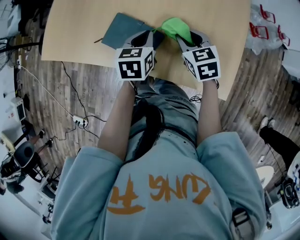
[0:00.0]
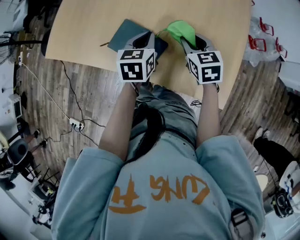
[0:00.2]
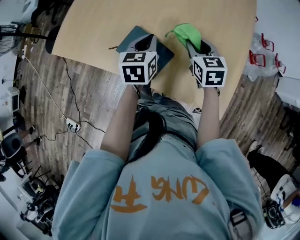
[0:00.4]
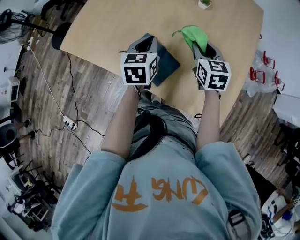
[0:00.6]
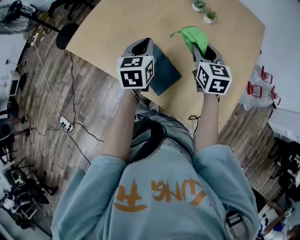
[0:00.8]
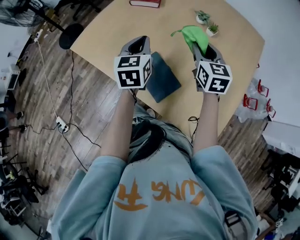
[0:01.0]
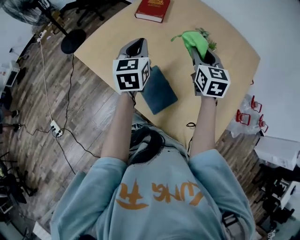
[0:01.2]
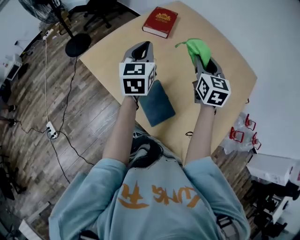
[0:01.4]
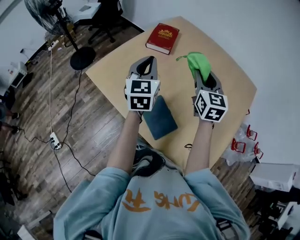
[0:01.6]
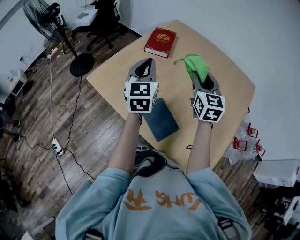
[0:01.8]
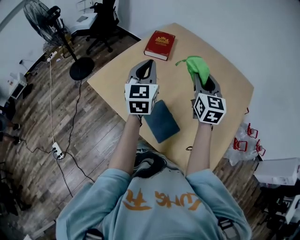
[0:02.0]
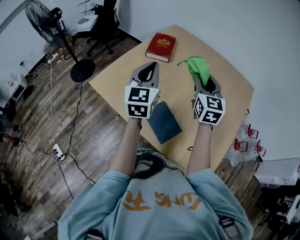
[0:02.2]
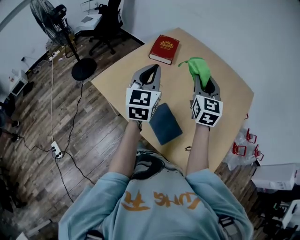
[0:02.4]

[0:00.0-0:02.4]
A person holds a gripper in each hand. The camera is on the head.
0:00.0 to 0:01.2: The left gripper moves upward, to the left and forward, approximately 30 cm, and changes its angle by some 40 degrees. The right gripper travels upward, forward and to the left by about 30 cm, and swivels some 20 degrees.
0:01.2 to 0:02.4: The left gripper shifts roughly 10 cm upward, while the right gripper shifts approximately 10 cm upward and to the left.

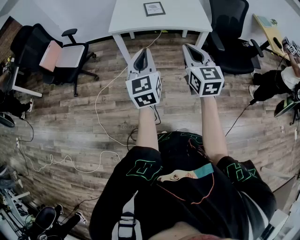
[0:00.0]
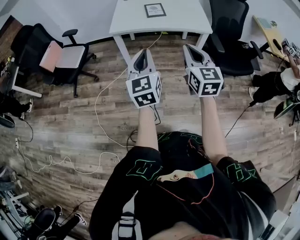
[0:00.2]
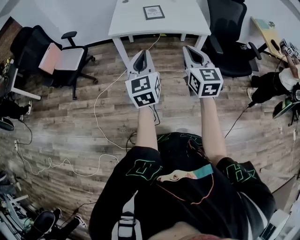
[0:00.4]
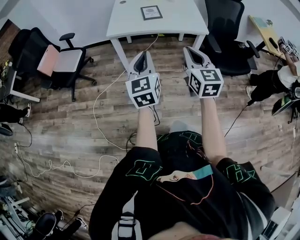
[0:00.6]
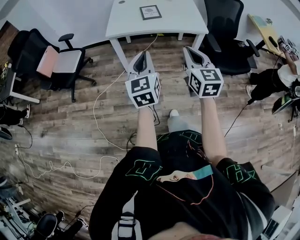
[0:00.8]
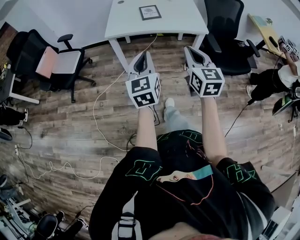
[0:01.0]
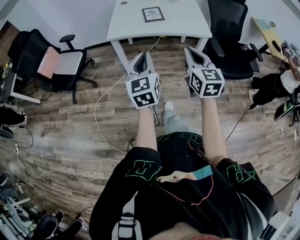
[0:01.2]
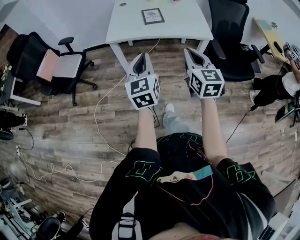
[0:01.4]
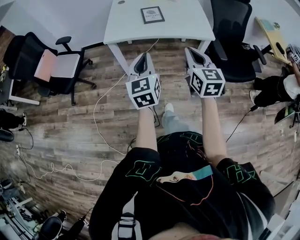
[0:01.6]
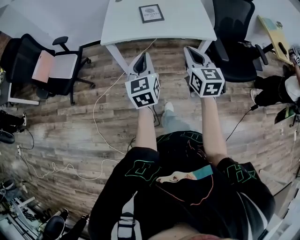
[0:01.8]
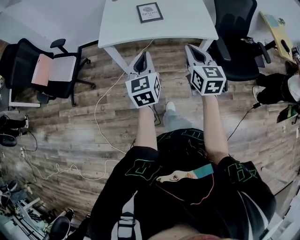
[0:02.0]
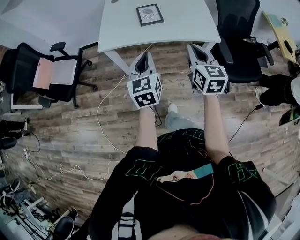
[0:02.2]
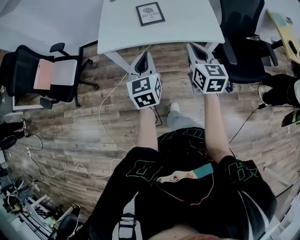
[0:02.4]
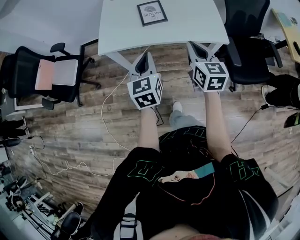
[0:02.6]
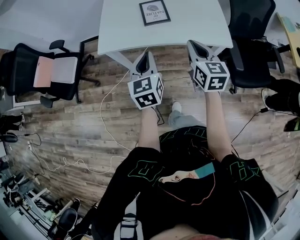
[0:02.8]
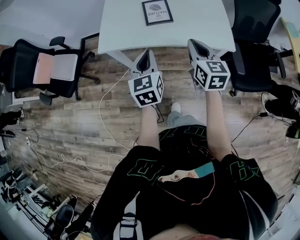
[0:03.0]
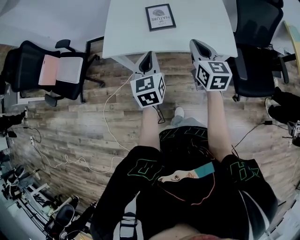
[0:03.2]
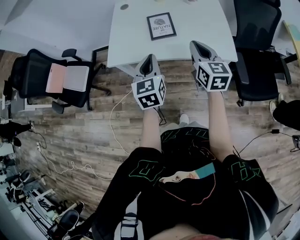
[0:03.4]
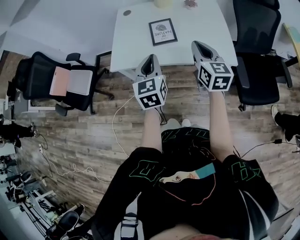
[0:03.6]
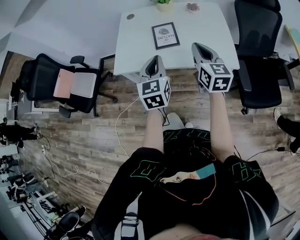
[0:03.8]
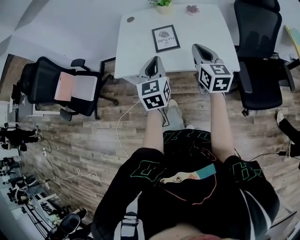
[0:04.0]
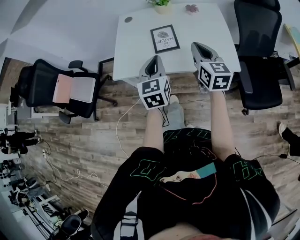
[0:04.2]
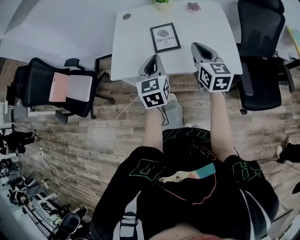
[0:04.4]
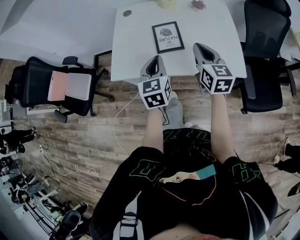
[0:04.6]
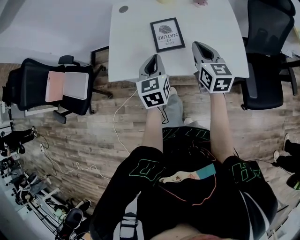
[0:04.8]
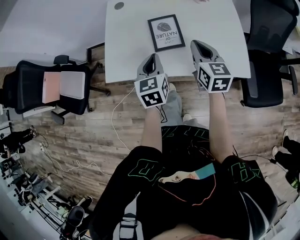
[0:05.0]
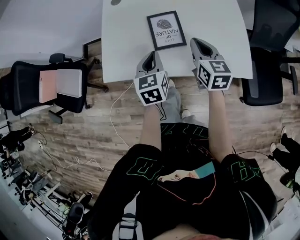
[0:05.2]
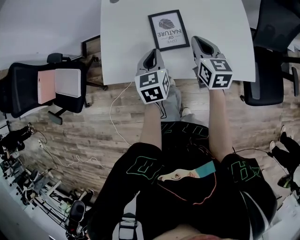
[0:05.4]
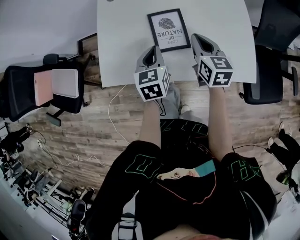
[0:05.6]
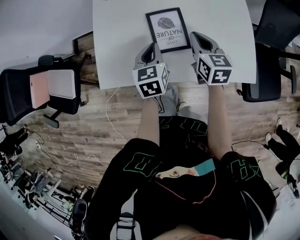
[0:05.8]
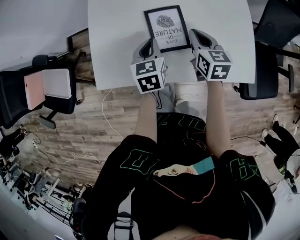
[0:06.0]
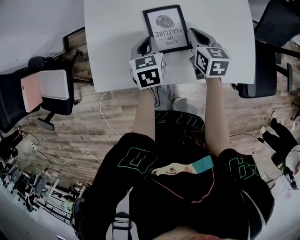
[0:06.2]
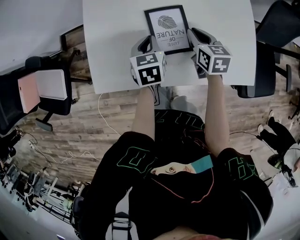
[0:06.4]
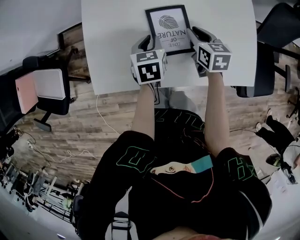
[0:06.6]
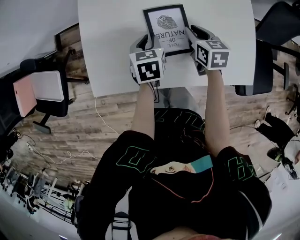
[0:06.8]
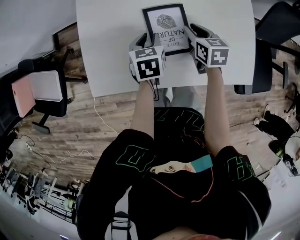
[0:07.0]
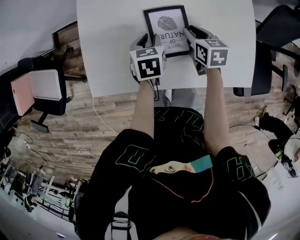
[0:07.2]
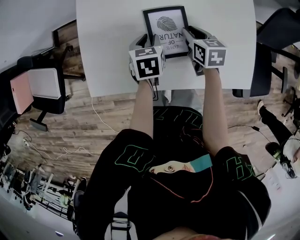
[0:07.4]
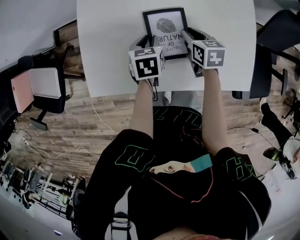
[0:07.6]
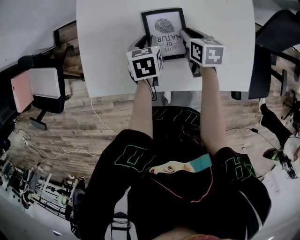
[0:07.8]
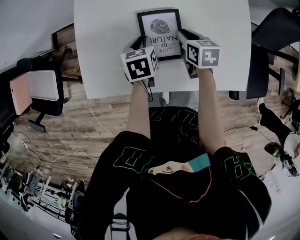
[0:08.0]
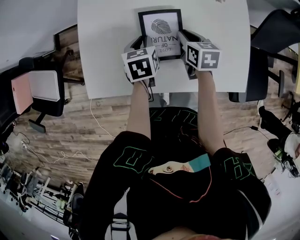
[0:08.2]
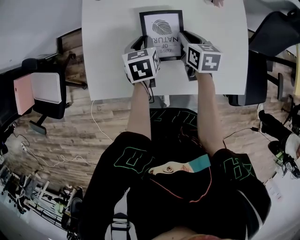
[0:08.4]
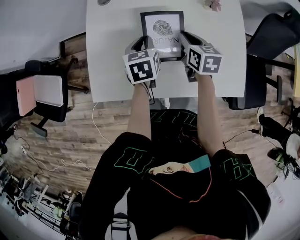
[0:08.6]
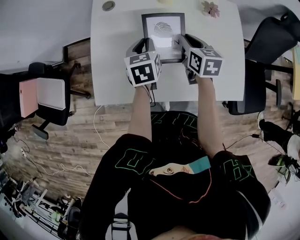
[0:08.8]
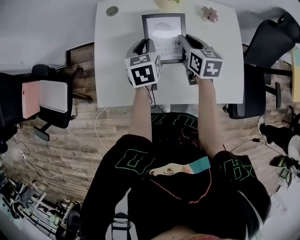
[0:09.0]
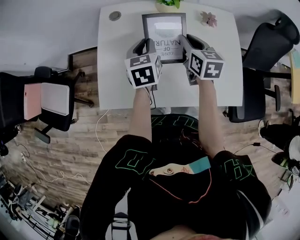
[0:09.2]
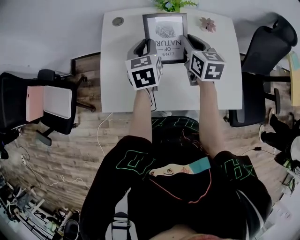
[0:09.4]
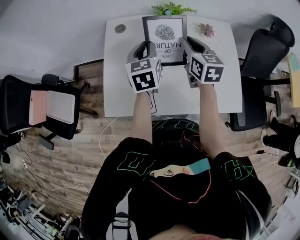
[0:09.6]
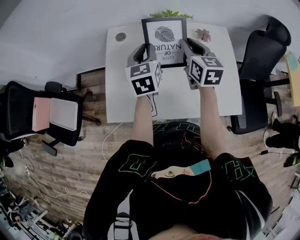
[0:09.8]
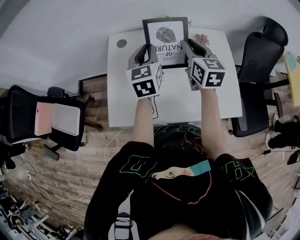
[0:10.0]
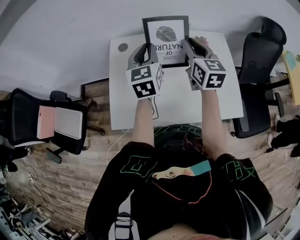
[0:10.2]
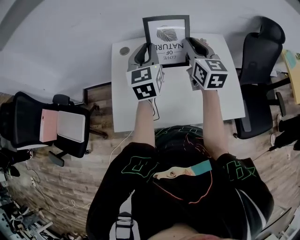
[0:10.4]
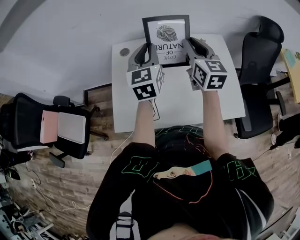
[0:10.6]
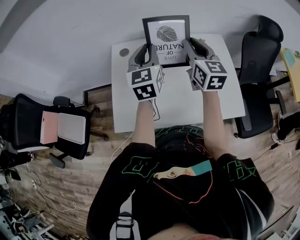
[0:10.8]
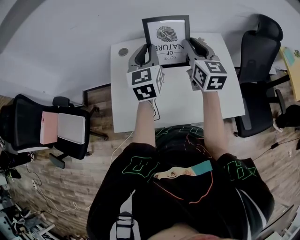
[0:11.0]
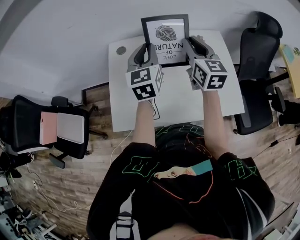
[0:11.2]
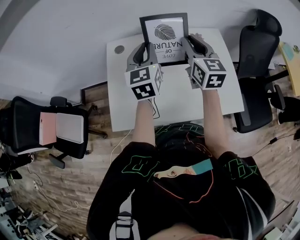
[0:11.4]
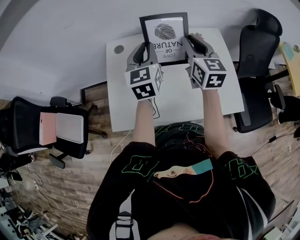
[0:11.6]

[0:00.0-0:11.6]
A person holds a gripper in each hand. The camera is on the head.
0:00.0 to 0:01.4: Both grippers move forward, some 10 cm.
0:01.4 to 0:02.8: The grippers both shift forward by some 25 cm.
0:02.8 to 0:04.4: Both grippers move forward, approximately 15 cm.
0:04.4 to 0:05.8: The grippers both shift forward and downward by some 20 cm. The left gripper rotates about 20 degrees.
0:05.8 to 0:07.2: The grippers both shift downward and forward by some 10 cm. The left gripper opens its fingers. Meanwhile the right gripper opens up.
0:07.2 to 0:08.8: Both grippers move upward, some 10 cm.
0:08.8 to 0:10.2: Both grippers travel together upward, some 20 cm. The right gripper rotates about 30 degrees; the left gripper swivels about 30 degrees.
0:10.2 to 0:11.6: The grippers stay close to where they were, moving slightly.

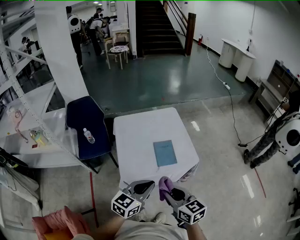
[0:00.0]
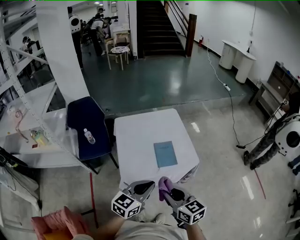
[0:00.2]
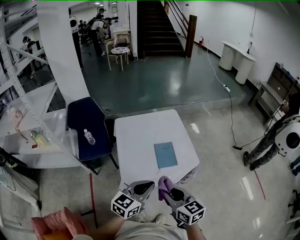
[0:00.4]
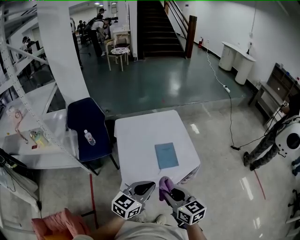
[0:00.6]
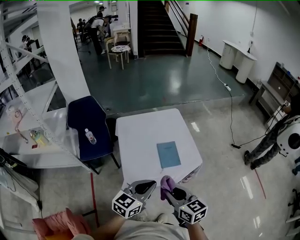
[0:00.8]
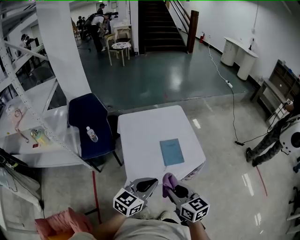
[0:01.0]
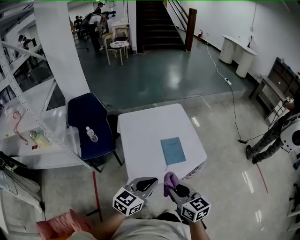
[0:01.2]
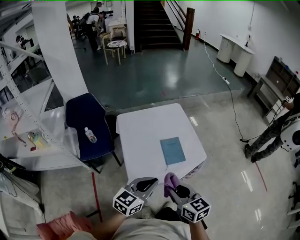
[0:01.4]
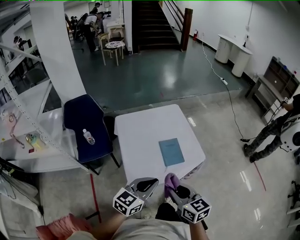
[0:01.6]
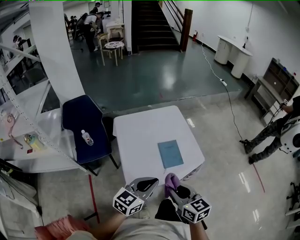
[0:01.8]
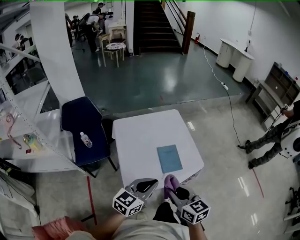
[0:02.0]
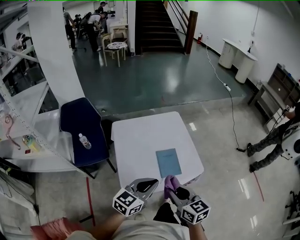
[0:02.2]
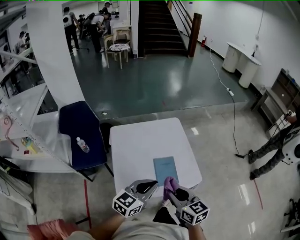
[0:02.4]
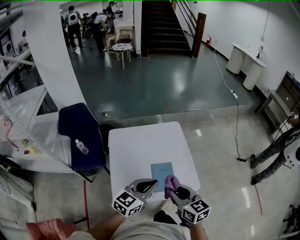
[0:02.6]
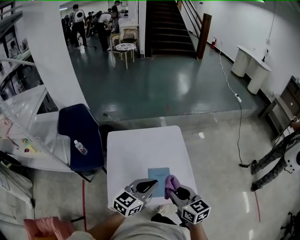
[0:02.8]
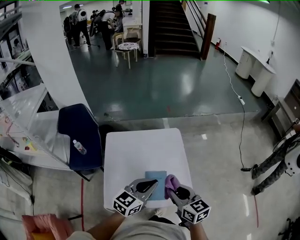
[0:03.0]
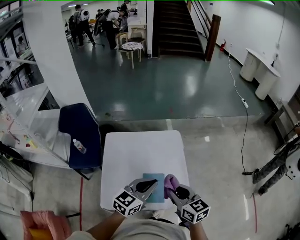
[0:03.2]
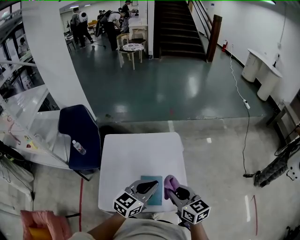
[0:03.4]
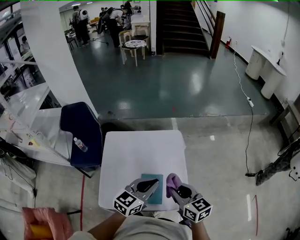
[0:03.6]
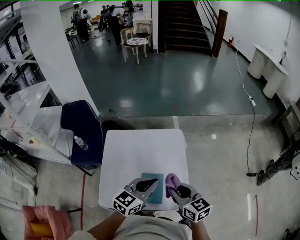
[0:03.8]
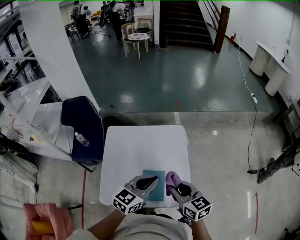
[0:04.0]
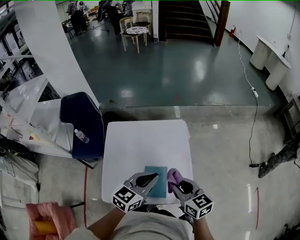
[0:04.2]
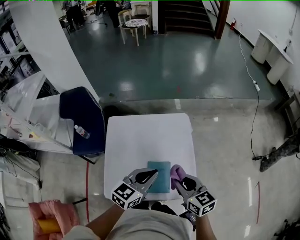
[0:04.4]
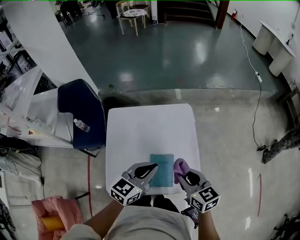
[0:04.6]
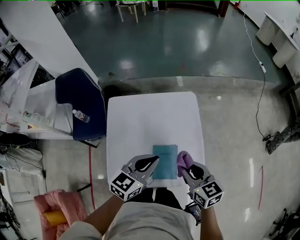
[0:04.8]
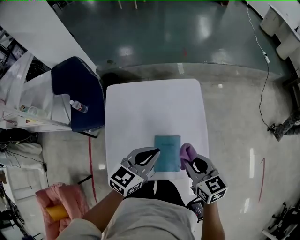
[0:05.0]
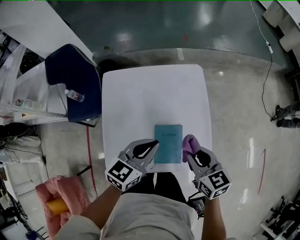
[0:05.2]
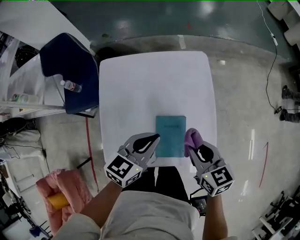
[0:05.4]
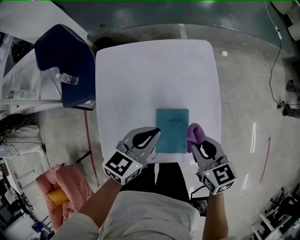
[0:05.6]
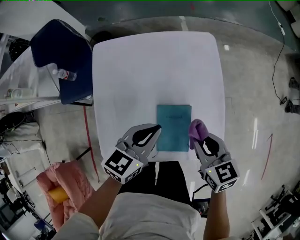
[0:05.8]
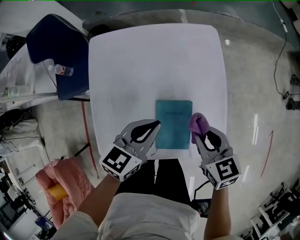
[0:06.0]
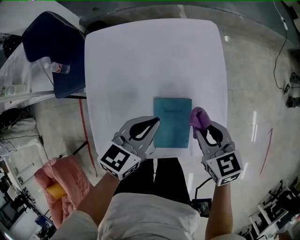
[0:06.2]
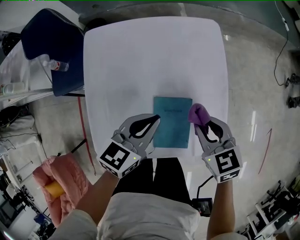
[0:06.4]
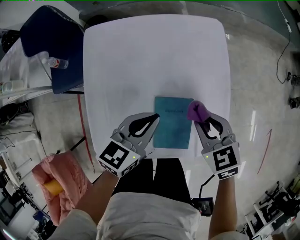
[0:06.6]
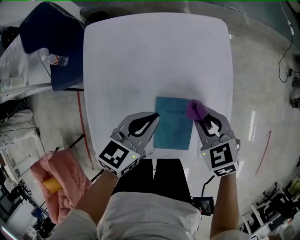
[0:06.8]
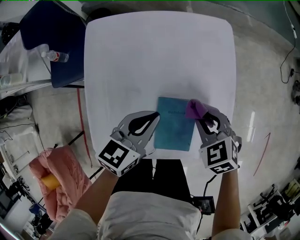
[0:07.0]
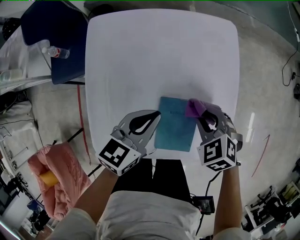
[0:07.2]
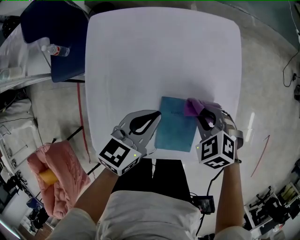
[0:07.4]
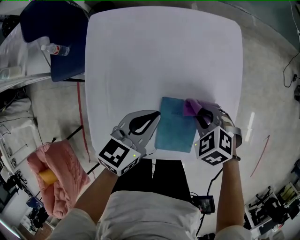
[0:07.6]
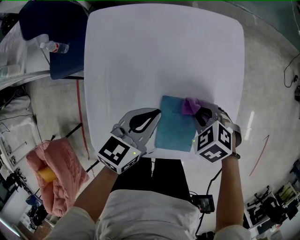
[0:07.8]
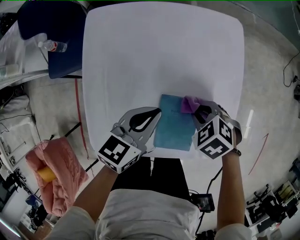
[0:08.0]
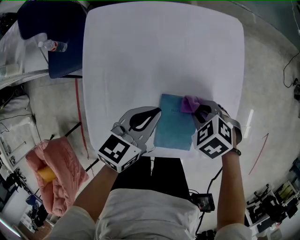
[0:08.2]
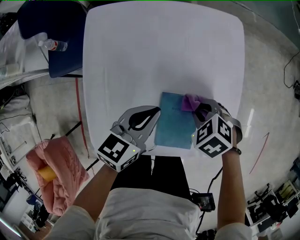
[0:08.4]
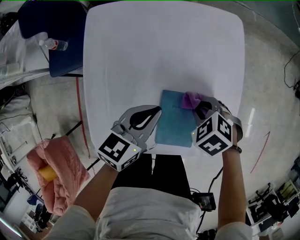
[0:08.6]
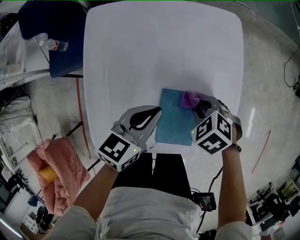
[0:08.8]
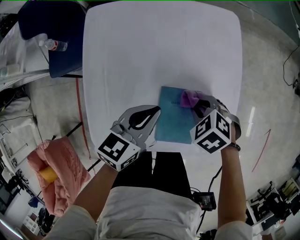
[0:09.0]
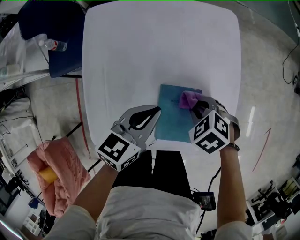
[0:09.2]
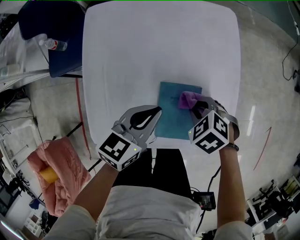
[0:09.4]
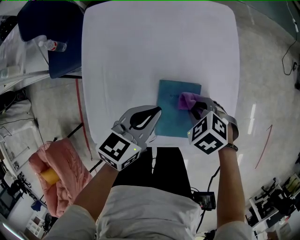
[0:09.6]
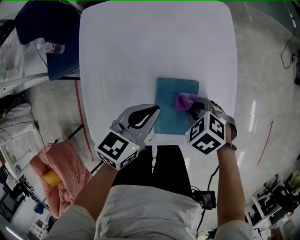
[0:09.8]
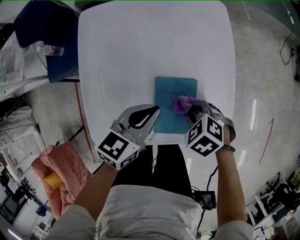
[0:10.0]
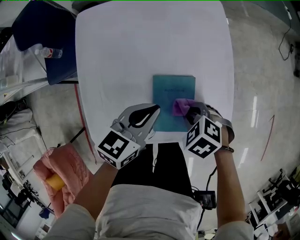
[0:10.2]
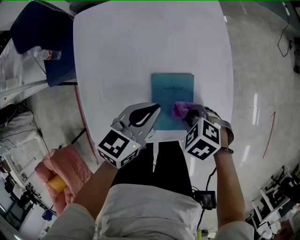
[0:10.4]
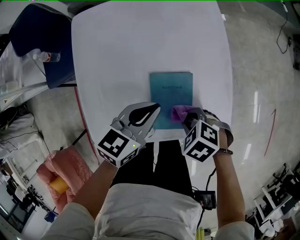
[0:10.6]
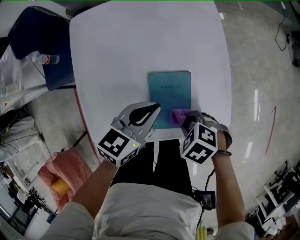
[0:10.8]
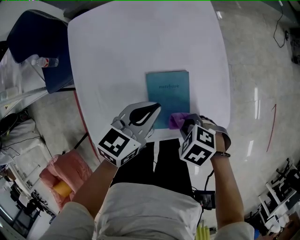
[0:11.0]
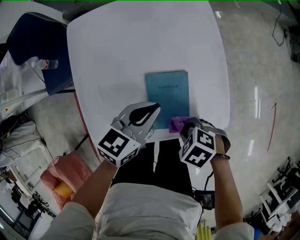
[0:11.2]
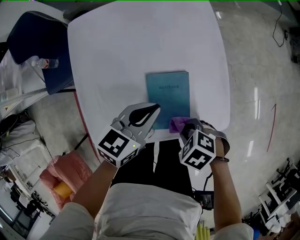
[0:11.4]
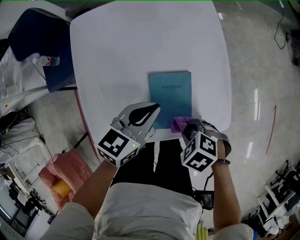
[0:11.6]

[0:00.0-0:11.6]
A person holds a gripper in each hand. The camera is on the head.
0:00.0 to 0:01.4: The grippers both shift to the left by approximately 5 cm.
0:01.4 to 0:02.8: The two grippers go roughly 25 cm forward and to the right.
0:02.8 to 0:04.4: The left gripper is displaced forward by about 10 cm. The right gripper shifts approximately 10 cm forward and to the right.
0:04.4 to 0:05.8: Both grippers move downward, about 15 cm.
0:05.8 to 0:07.2: The right gripper is displaced downward and forward by roughly 10 cm, and rotates around the line of its fingers by about 40 degrees, counterclockwise from behind; the left gripper goes some 5 cm downward.
0:07.2 to 0:08.8: The grippers stay close to where they were, moving slightly.
0:08.8 to 0:10.2: The right gripper shifts by some 10 cm.
0:10.2 to 0:11.6: The right gripper changes place by about 10 cm.
